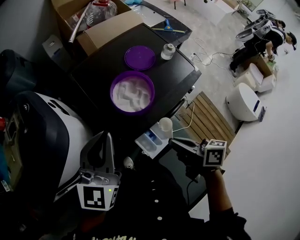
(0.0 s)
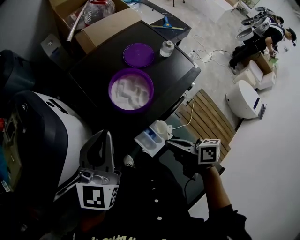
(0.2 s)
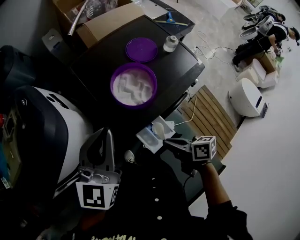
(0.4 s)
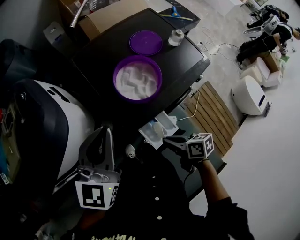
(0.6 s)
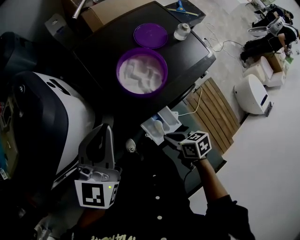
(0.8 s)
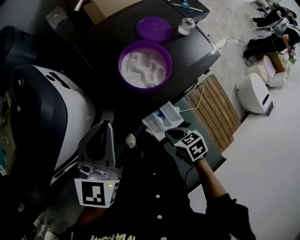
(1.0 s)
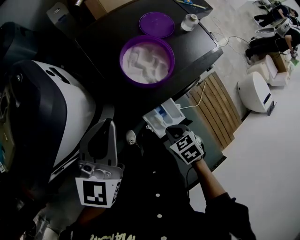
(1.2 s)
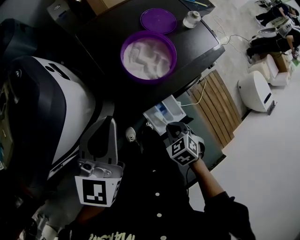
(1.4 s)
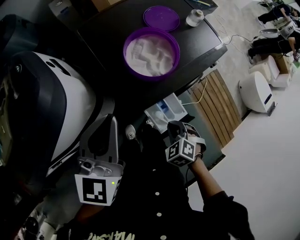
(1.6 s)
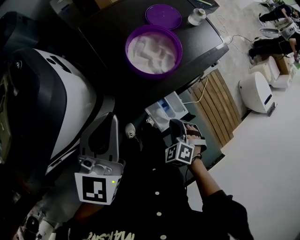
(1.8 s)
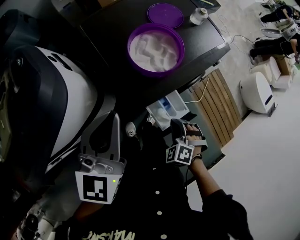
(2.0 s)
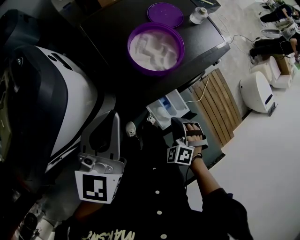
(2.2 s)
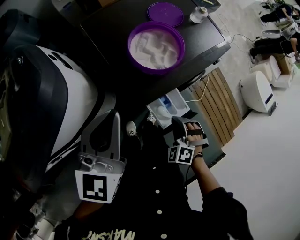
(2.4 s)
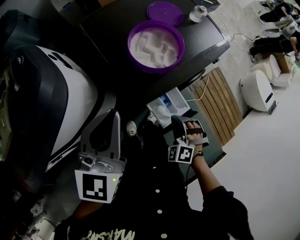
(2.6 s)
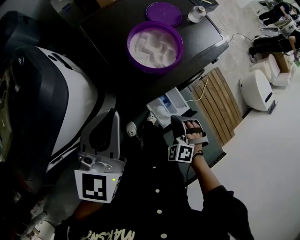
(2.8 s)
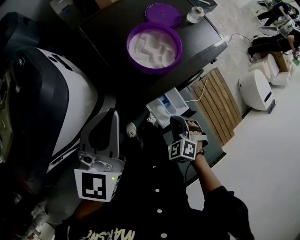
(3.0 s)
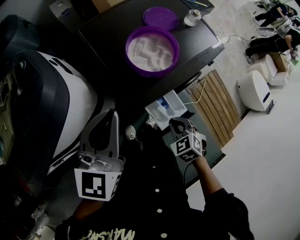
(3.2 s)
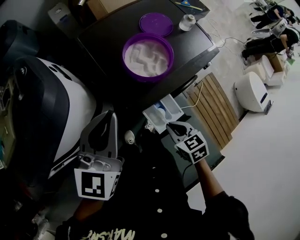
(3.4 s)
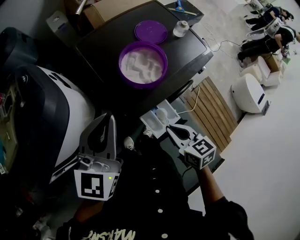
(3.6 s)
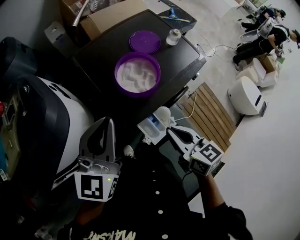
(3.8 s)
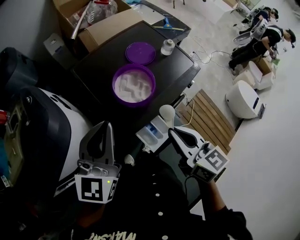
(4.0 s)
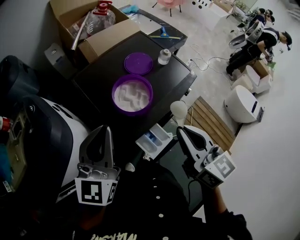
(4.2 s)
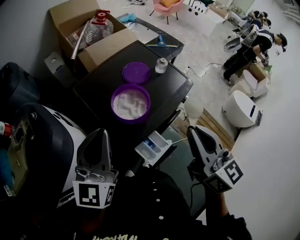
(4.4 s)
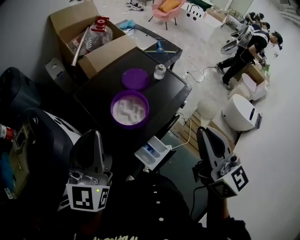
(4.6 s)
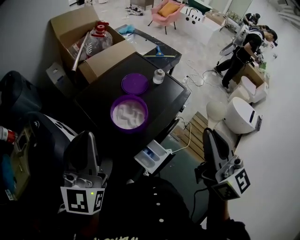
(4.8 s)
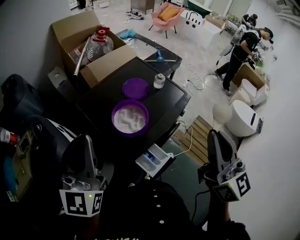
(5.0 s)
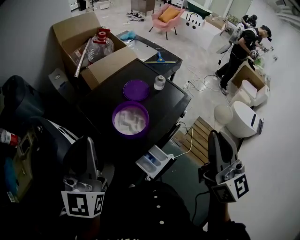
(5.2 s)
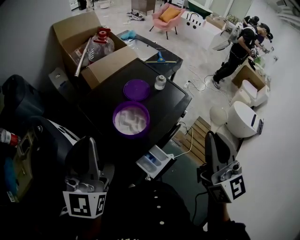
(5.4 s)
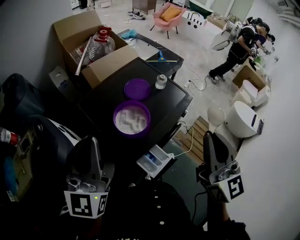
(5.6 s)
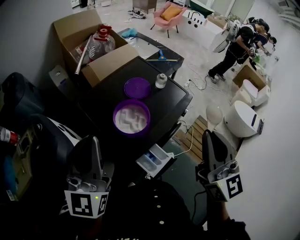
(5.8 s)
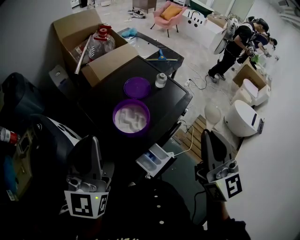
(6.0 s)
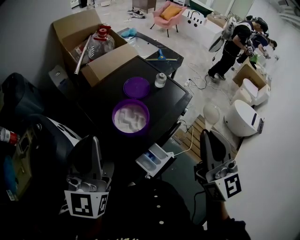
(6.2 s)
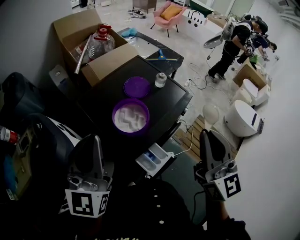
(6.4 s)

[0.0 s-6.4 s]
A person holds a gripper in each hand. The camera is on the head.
0.0 to 1.6 s: The left gripper is displaced downward by about 5 cm, while the right gripper is displaced downward by some 20 cm, and points its fingers roughly 50 degrees further downward.
3.2 to 4.8 s: The left gripper heads upward and forward, covering roughly 15 cm, and rotates roughly 20 degrees; the right gripper is displaced upward by some 40 cm, and tilts its fingers some 70 degrees upward.
4.8 to 6.4 s: The grippers stay close to where they were, moving slightly.

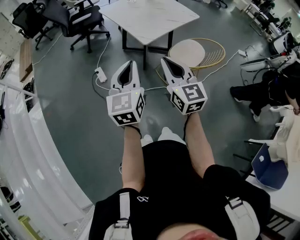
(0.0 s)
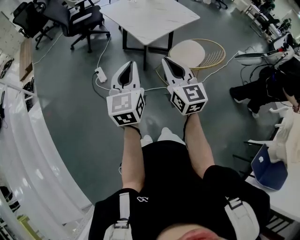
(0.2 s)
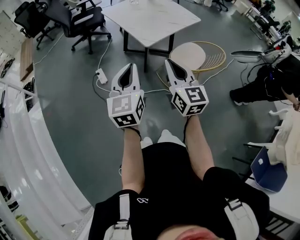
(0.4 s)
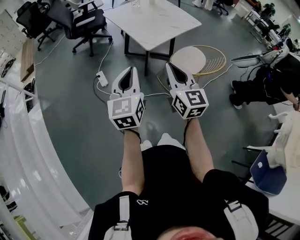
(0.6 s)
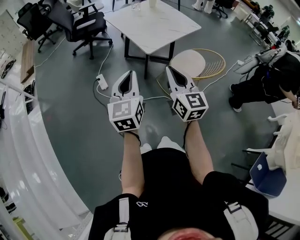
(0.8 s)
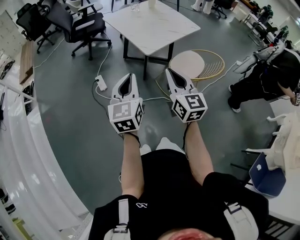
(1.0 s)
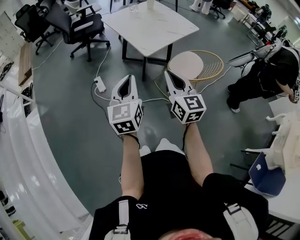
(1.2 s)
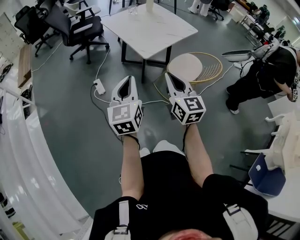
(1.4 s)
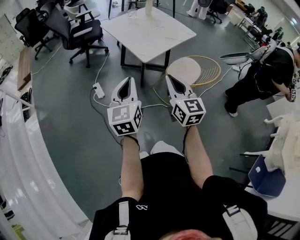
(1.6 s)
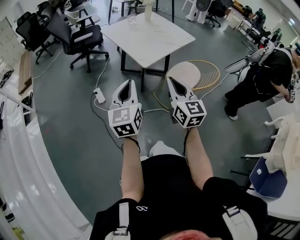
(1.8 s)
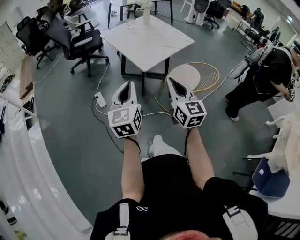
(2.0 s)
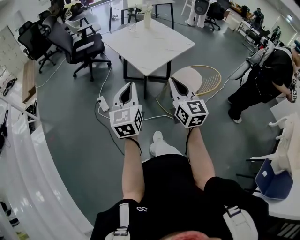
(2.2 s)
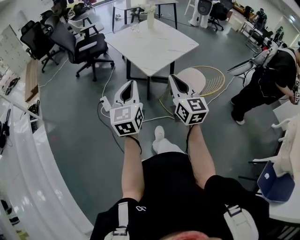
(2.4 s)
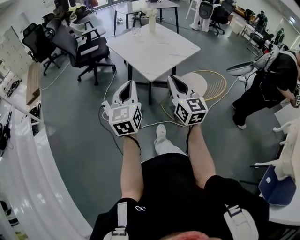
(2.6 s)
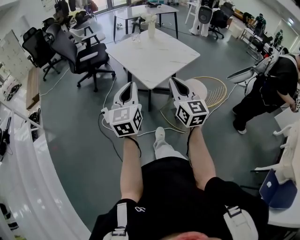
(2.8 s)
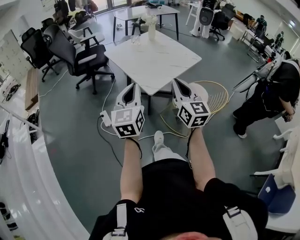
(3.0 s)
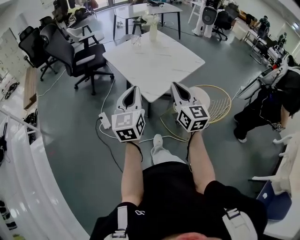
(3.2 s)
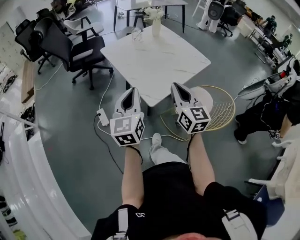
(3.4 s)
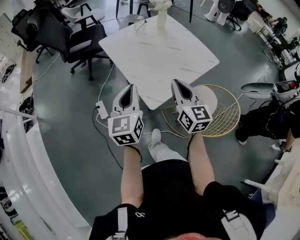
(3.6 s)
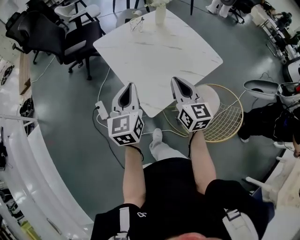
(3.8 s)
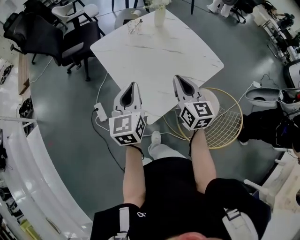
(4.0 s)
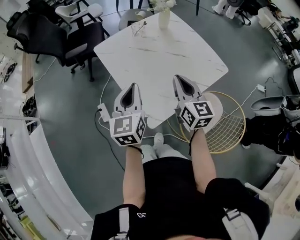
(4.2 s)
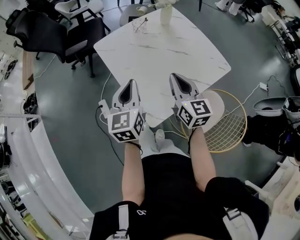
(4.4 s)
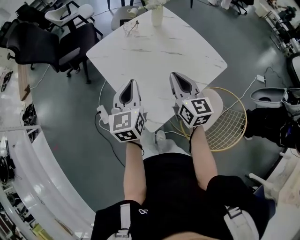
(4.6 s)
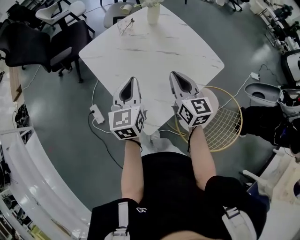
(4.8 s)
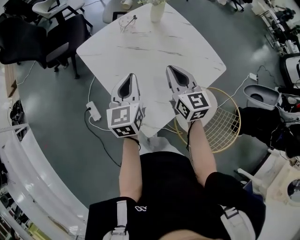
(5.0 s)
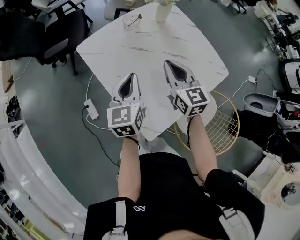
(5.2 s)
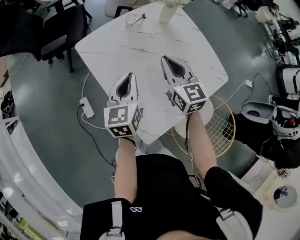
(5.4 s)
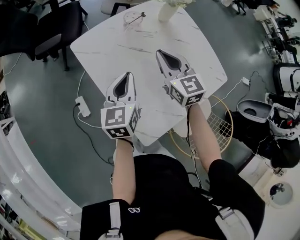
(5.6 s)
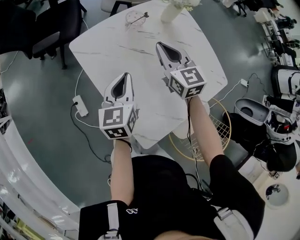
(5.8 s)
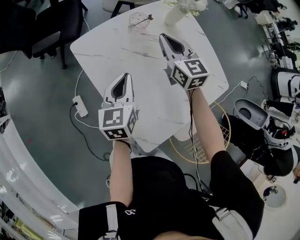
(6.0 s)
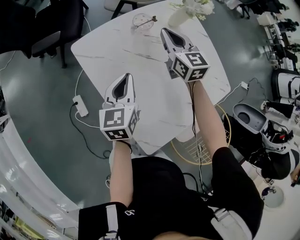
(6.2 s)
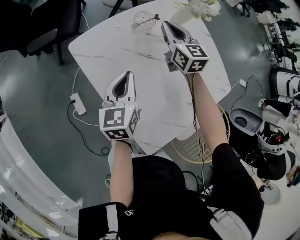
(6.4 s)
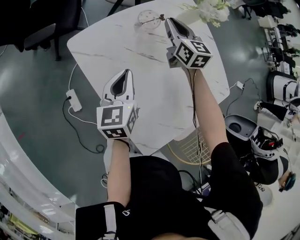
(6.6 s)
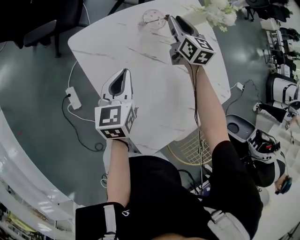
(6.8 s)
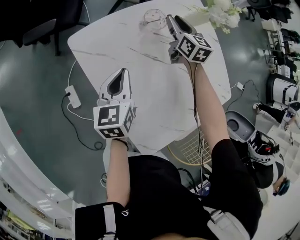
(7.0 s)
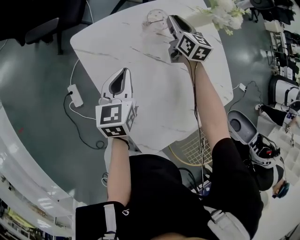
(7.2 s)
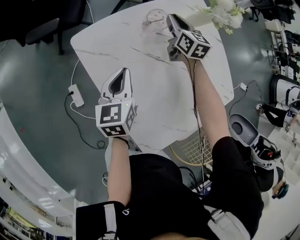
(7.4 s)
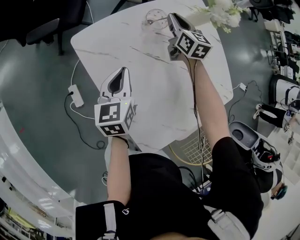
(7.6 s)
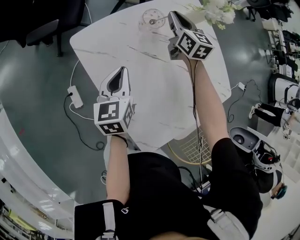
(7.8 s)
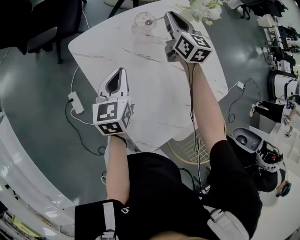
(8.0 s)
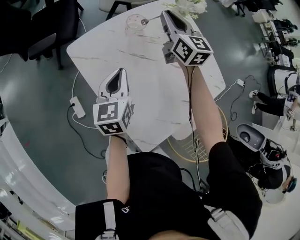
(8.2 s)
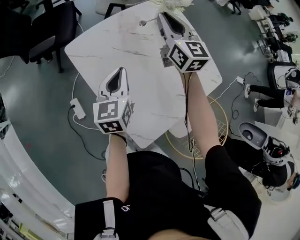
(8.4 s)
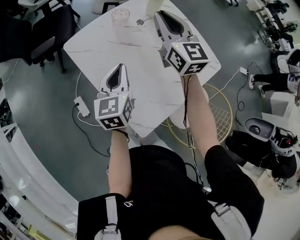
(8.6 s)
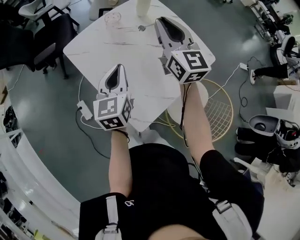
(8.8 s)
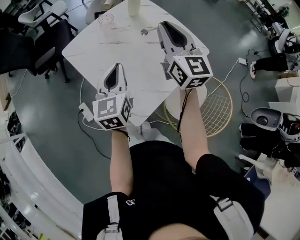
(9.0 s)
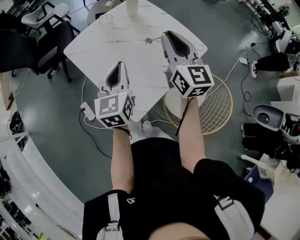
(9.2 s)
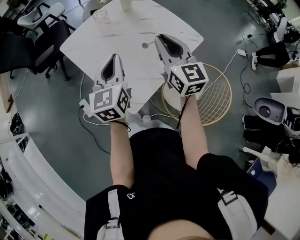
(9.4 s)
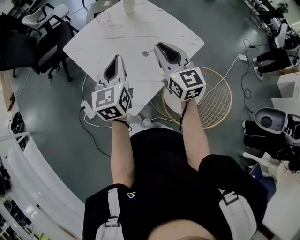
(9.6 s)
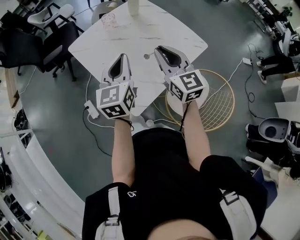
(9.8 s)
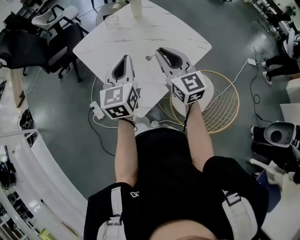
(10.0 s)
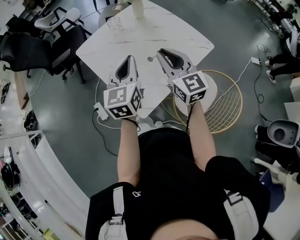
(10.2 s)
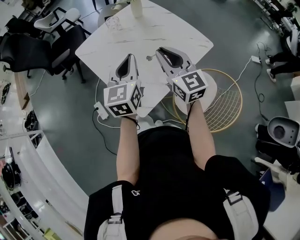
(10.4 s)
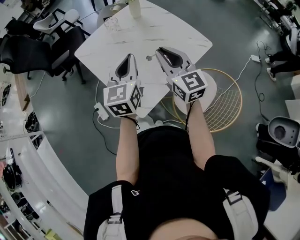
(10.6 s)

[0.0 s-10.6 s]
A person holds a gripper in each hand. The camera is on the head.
0.0 to 1.6 s: There are only small adjustments of the grippers.
1.6 to 3.0 s: The grippers both shift forward by approximately 15 cm.
3.0 to 4.6 s: Both grippers travel together forward, about 40 cm.
4.6 to 6.0 s: The right gripper goes some 30 cm forward; the left gripper heads forward and downward, covering approximately 20 cm.
6.0 to 7.6 s: The left gripper goes some 10 cm downward and forward; the right gripper moves forward and downward, approximately 20 cm.
7.6 to 9.0 s: The right gripper moves backward and upward, about 40 cm, and turns by roughly 30 degrees, while the left gripper heads upward, backward and to the right, covering roughly 25 cm.
9.0 to 10.6 s: The right gripper shifts about 15 cm backward and downward; the left gripper travels to the right by some 5 cm.

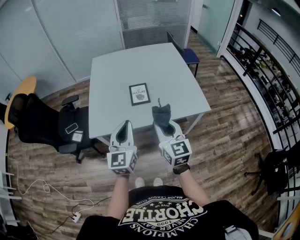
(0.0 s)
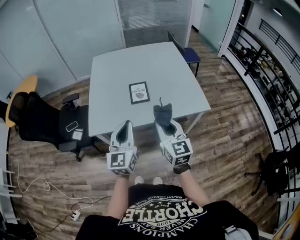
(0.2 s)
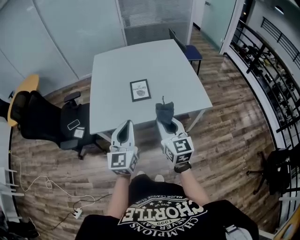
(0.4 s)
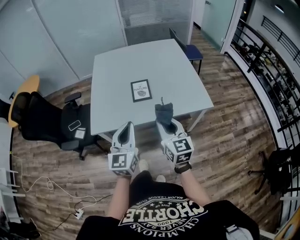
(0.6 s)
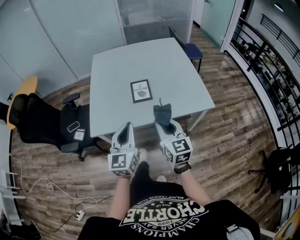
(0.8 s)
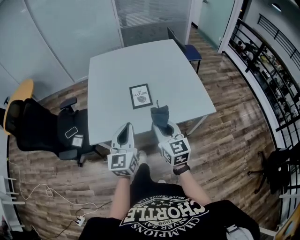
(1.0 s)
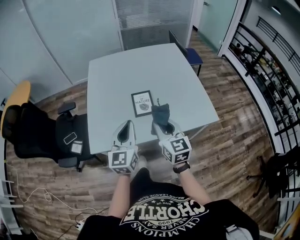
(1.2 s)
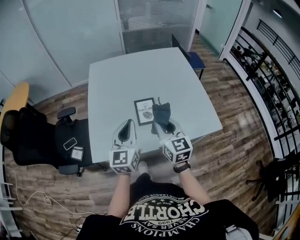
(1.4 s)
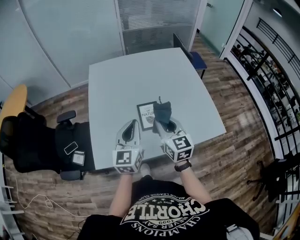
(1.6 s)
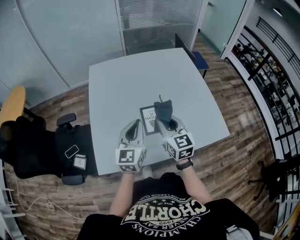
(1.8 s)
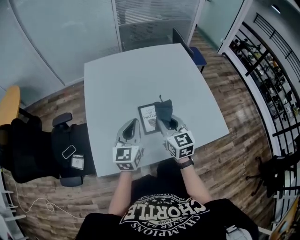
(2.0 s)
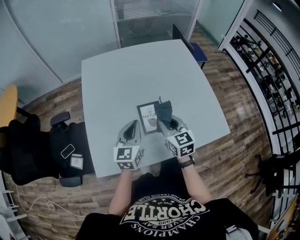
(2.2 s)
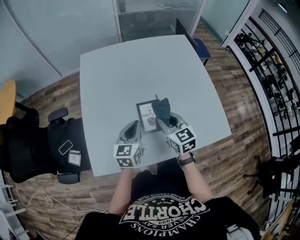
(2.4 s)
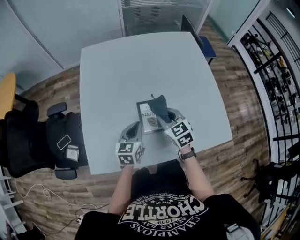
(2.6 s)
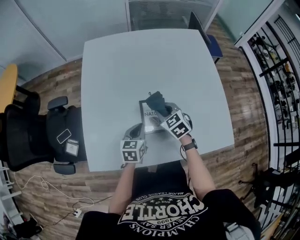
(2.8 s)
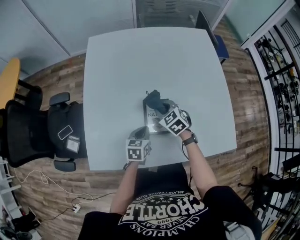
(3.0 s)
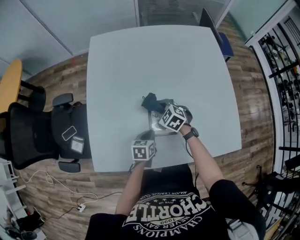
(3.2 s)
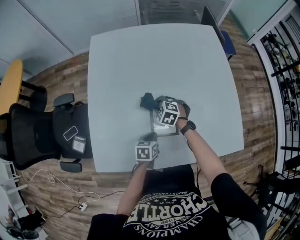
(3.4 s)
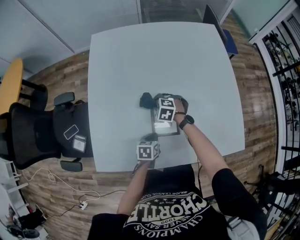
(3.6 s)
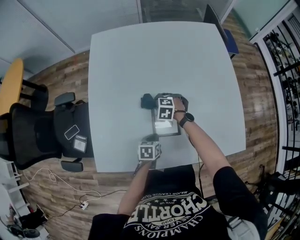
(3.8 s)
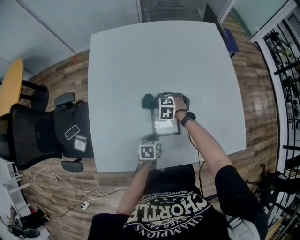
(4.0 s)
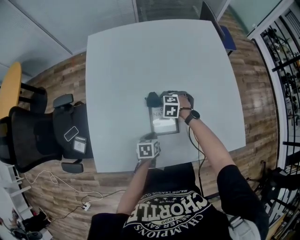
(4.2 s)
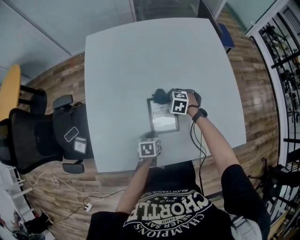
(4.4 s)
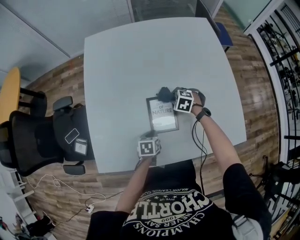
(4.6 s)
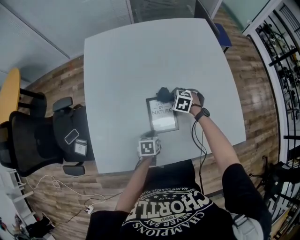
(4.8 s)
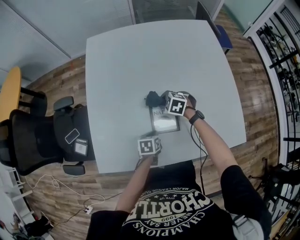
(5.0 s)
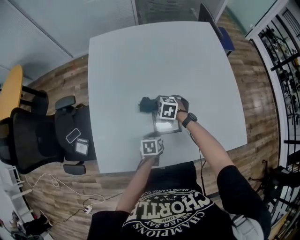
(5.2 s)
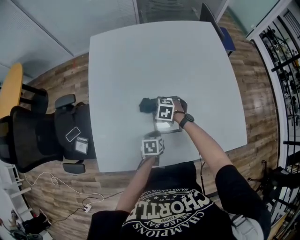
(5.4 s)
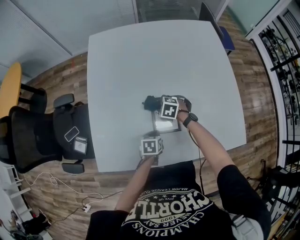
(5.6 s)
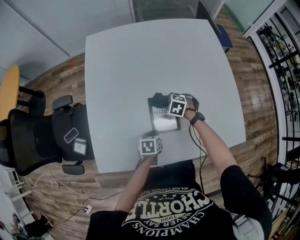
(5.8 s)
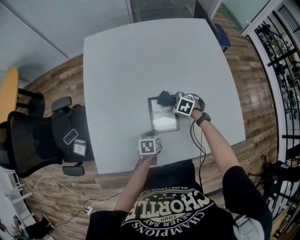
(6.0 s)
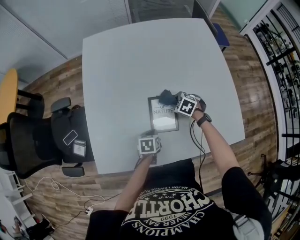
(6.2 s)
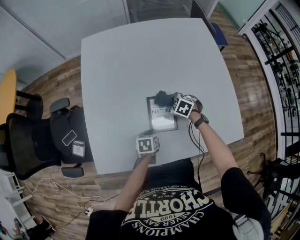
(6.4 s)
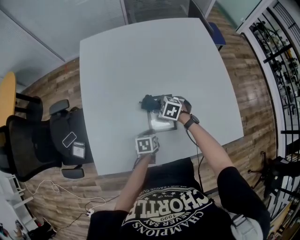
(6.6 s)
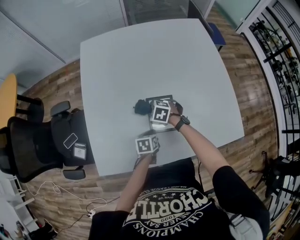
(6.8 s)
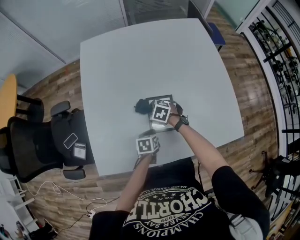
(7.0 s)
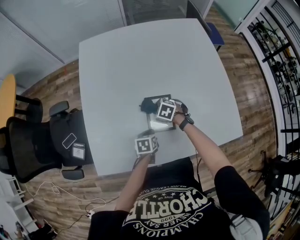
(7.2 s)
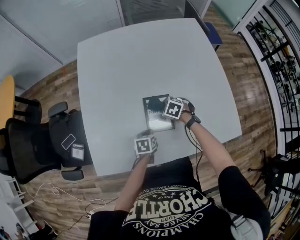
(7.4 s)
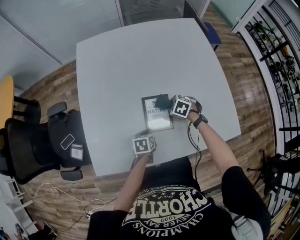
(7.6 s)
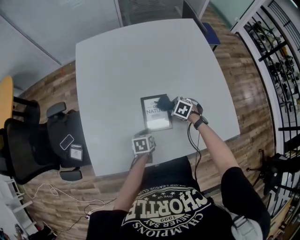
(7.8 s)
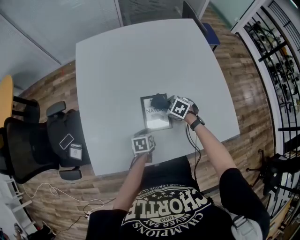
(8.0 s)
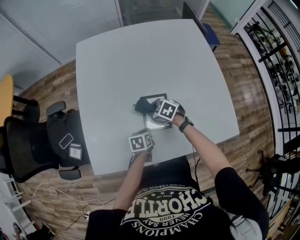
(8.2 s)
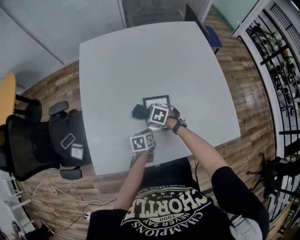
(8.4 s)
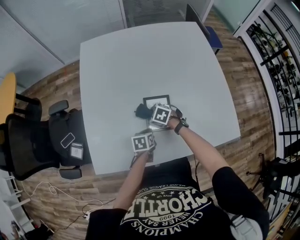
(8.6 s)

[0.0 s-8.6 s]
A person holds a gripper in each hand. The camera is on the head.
0.0 to 1.4 s: The two grippers go roughly 20 cm forward.
1.4 to 2.8 s: The left gripper is displaced downward and forward by about 30 cm, and points its fingers about 30 degrees further downward. Meanwhile the right gripper heads forward and downward, covering about 30 cm, and angles its fingers downward, by roughly 30 degrees.
2.8 to 4.4 s: The right gripper travels downward and forward by some 15 cm, and rotates about 40 degrees; the left gripper is displaced downward by some 15 cm, and changes its angle by about 30 degrees.
4.4 to 5.8 s: The right gripper goes to the left and returns, roughly 10 cm each way.
5.8 to 7.2 s: The right gripper swings left and right, about 15 cm each way, with 2 reversals.
7.2 to 8.6 s: The right gripper travels to the right and back again, some 10 cm each way.
